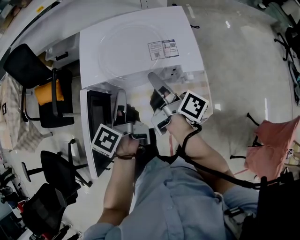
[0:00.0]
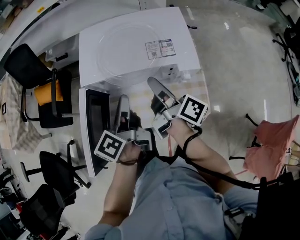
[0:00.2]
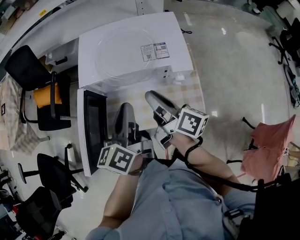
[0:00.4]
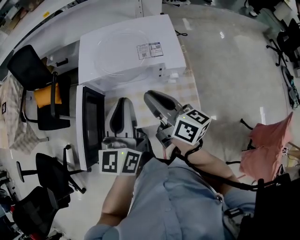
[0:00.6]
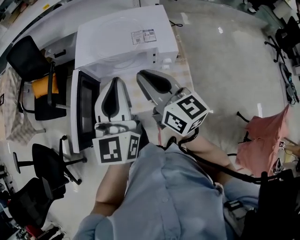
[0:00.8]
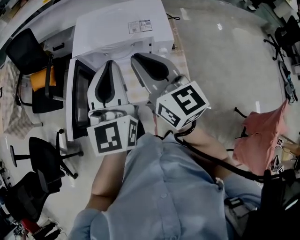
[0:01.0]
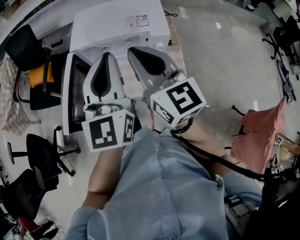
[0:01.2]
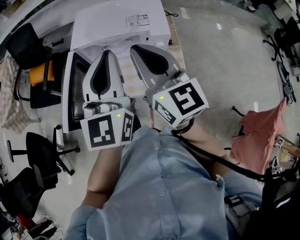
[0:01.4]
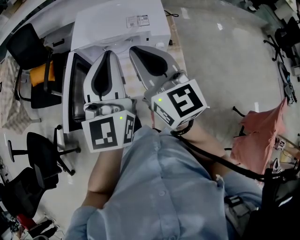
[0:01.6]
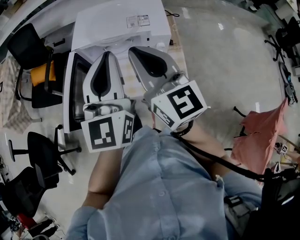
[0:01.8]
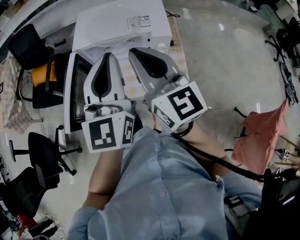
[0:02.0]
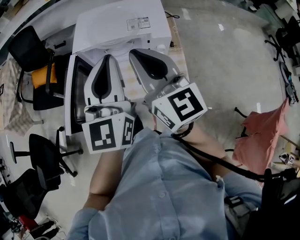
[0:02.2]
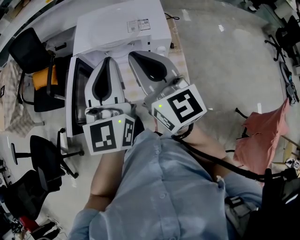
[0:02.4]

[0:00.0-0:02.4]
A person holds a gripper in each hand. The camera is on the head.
0:00.0 to 0:01.2: The two grippers go roughly 25 cm upward and backward. The left gripper twists approximately 70 degrees clockwise, seen from behind. Meanwhile the right gripper twists about 70 degrees counterclockwise, seen from behind, and closes up.
0:01.2 to 0:02.4: The grippers make only small movements.

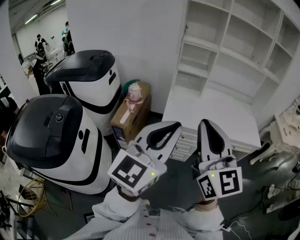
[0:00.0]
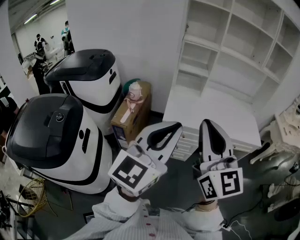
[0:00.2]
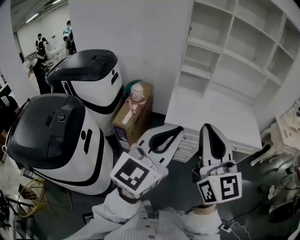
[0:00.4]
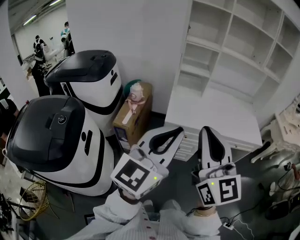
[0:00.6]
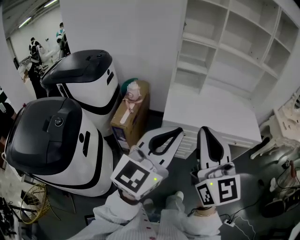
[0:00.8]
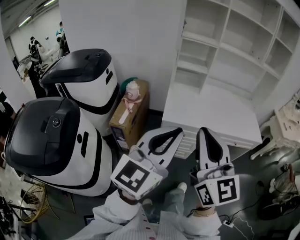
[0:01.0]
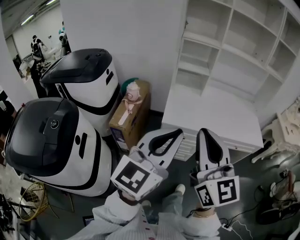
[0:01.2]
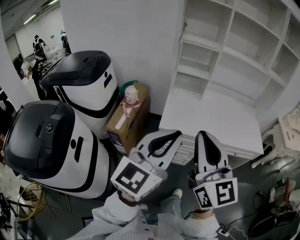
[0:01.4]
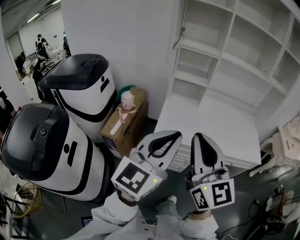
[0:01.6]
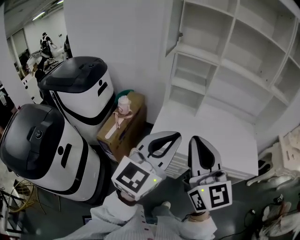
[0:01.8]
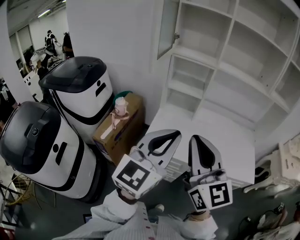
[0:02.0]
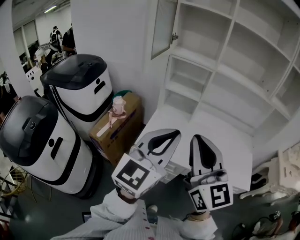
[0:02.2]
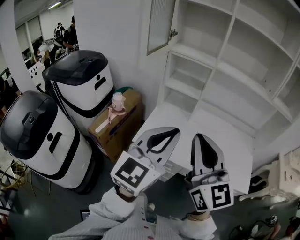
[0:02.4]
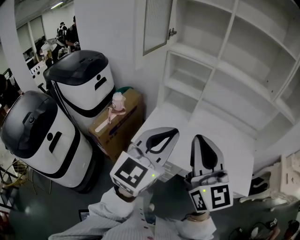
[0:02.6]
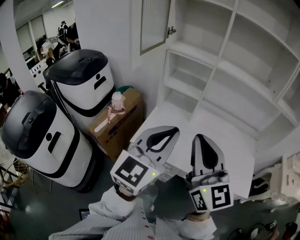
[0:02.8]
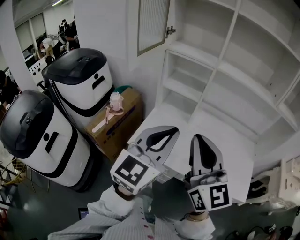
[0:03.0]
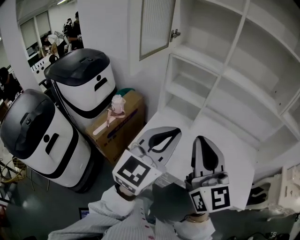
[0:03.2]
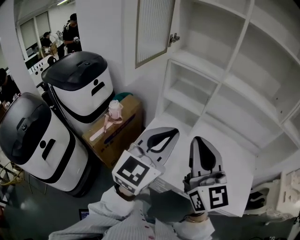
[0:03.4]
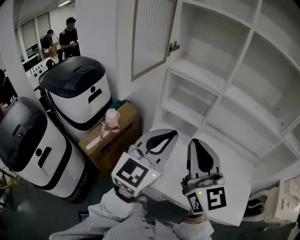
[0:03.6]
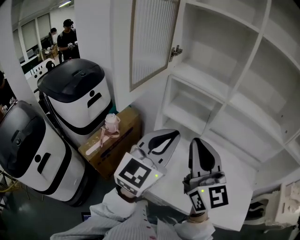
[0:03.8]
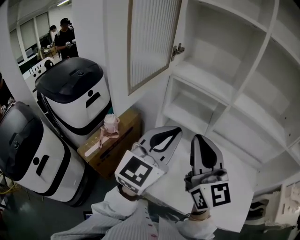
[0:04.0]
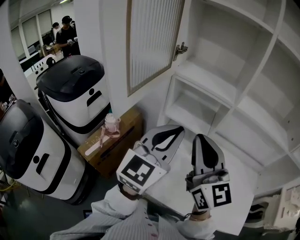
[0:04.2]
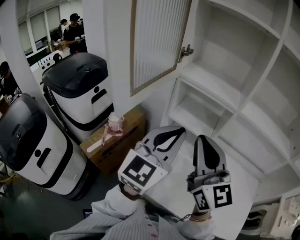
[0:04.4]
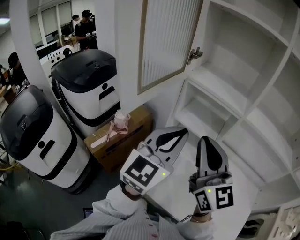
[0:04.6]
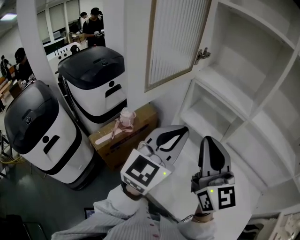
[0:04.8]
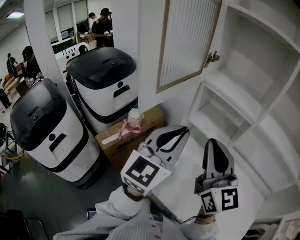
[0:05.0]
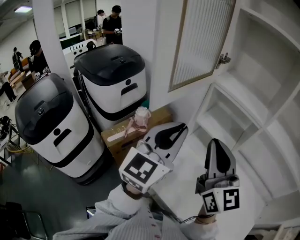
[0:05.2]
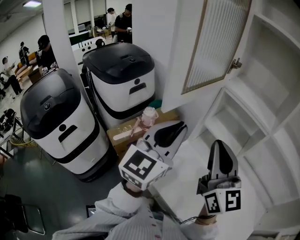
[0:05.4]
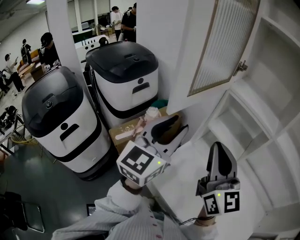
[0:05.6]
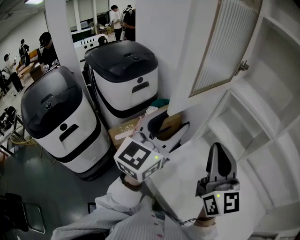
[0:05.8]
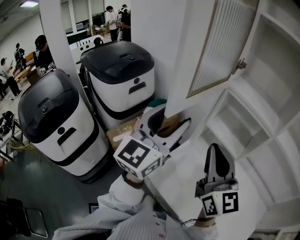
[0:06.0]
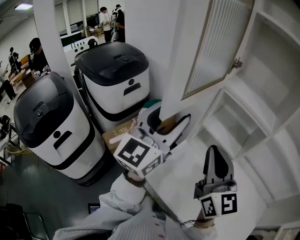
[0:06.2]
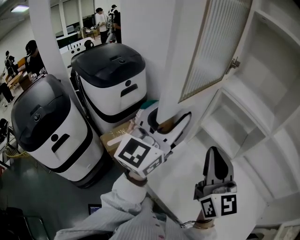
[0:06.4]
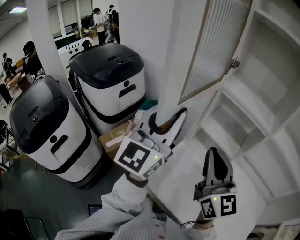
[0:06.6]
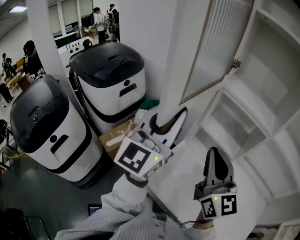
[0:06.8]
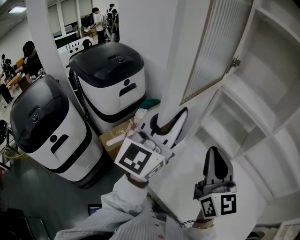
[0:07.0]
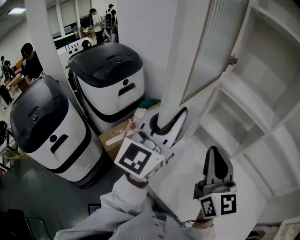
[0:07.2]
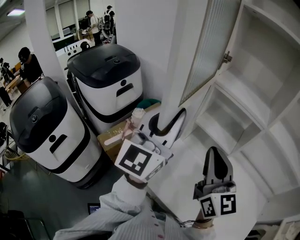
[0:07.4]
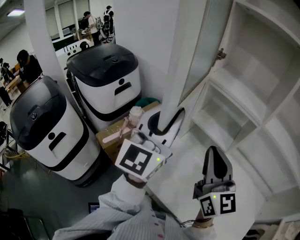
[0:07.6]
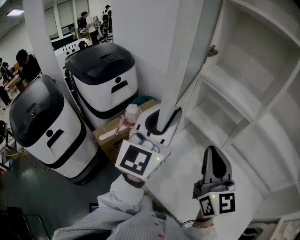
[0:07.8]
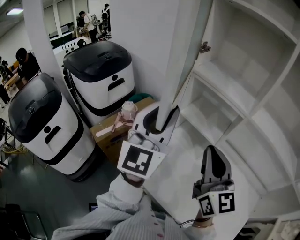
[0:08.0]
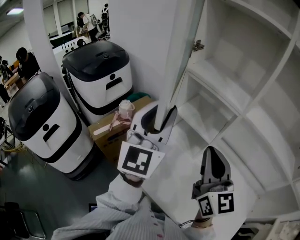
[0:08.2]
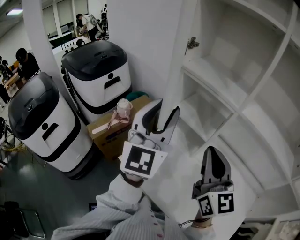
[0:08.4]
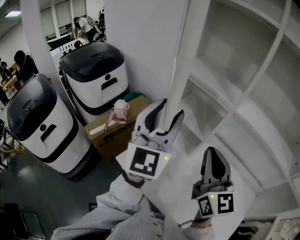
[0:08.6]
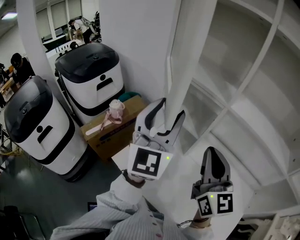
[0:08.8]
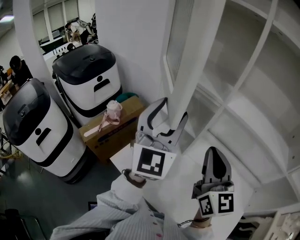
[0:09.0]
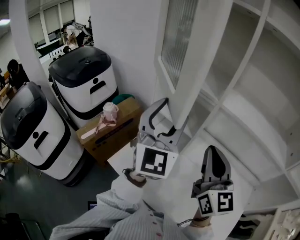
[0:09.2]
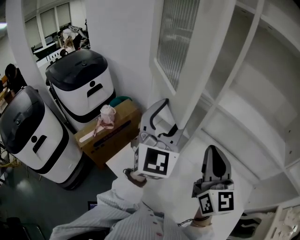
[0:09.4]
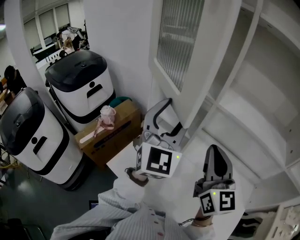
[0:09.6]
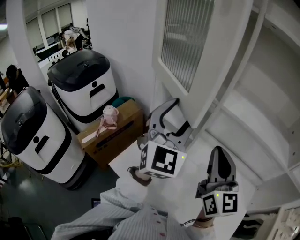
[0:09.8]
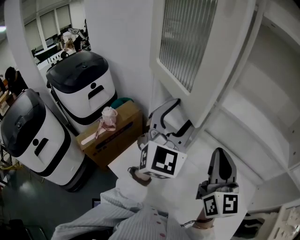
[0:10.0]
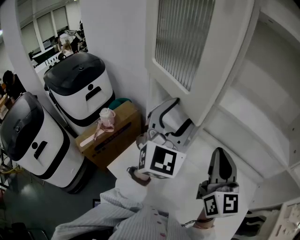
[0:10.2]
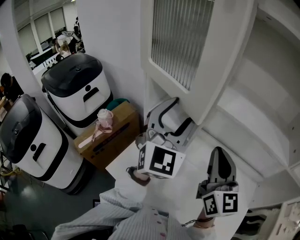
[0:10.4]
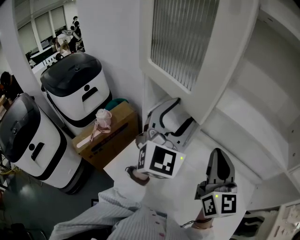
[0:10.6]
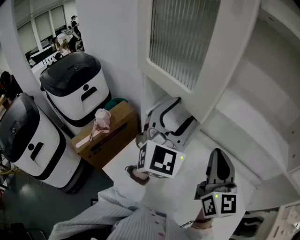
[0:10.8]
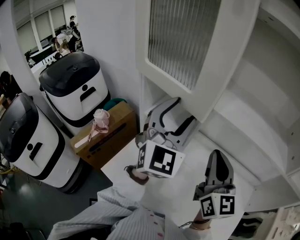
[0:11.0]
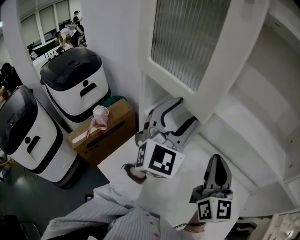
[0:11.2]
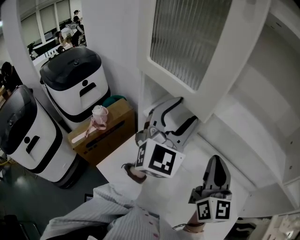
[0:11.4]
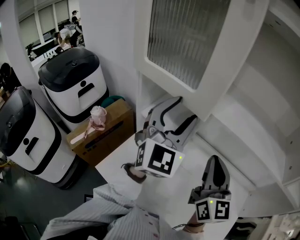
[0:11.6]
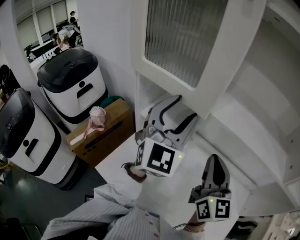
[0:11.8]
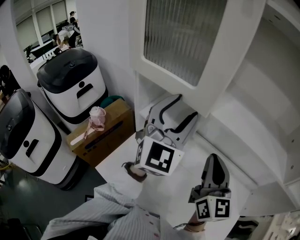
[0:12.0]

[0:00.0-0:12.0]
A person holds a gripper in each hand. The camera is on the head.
0:00.0 to 0:01.6: Both grippers move forward, approximately 10 cm.
0:01.6 to 0:03.0: The right gripper heads to the right and forward, covering roughly 25 cm. Meanwhile the left gripper heads forward and to the right, covering some 25 cm.
0:03.0 to 0:04.4: Both grippers travel together forward, about 25 cm.
0:04.4 to 0:06.0: The left gripper travels to the left by approximately 15 cm, swivels approximately 20 degrees, and opens; the right gripper moves to the left, about 5 cm.
0:06.0 to 0:07.6: The grippers both shift to the right by roughly 5 cm. The left gripper closes up.
0:07.6 to 0:09.0: The two grippers go roughly 15 cm to the right. The left gripper opens its fingers.
0:09.0 to 0:10.4: The left gripper heads to the right, covering roughly 5 cm. The right gripper ends up roughly 5 cm from where it was.
0:10.4 to 0:12.0: The left gripper goes roughly 5 cm forward. The right gripper ends up approximately 5 cm from where it was.

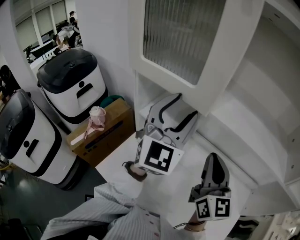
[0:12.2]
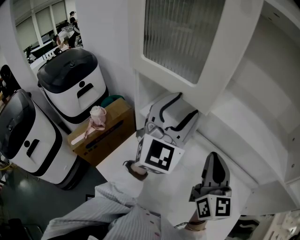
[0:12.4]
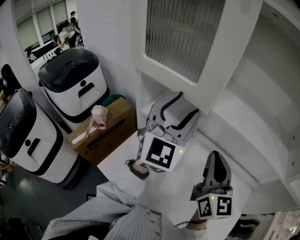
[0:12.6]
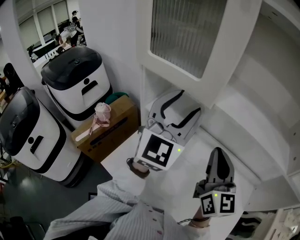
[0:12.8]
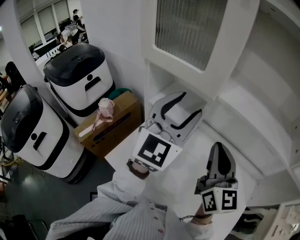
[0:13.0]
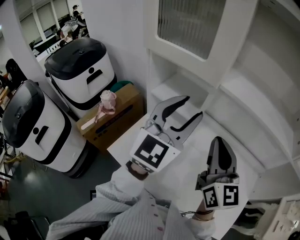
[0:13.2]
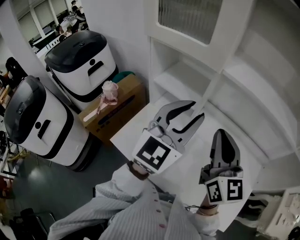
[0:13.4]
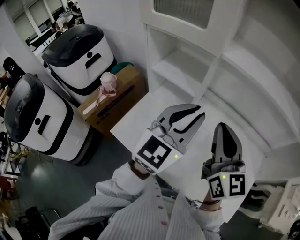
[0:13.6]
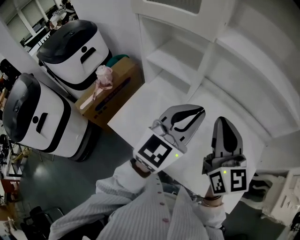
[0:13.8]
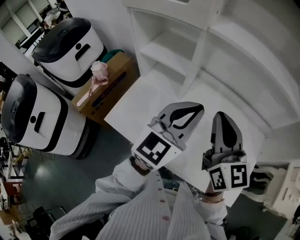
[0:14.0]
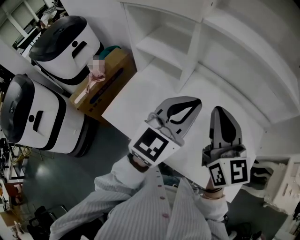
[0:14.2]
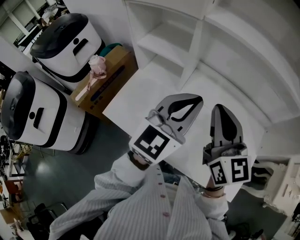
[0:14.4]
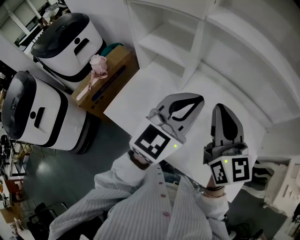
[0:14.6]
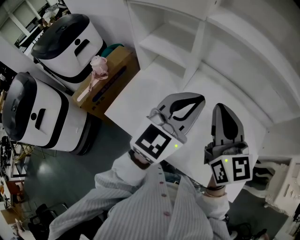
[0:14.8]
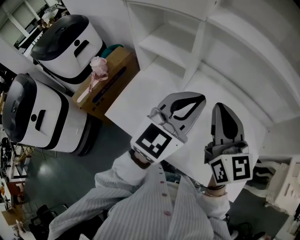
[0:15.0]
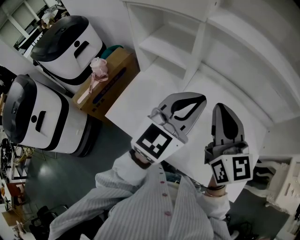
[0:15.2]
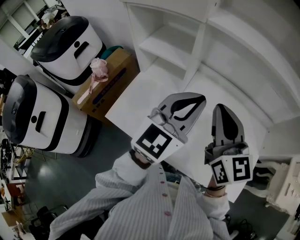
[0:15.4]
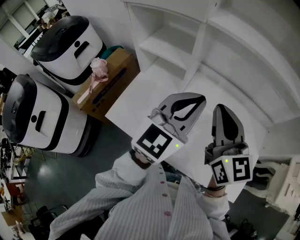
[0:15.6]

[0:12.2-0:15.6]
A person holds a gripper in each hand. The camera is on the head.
0:12.2 to 0:13.8: The right gripper moves backward, approximately 10 cm. Meanwhile the left gripper moves backward, downward and to the right, roughly 20 cm, turns by some 30 degrees, and closes up.
0:13.8 to 0:15.6: There are only small adjustments of the grippers.

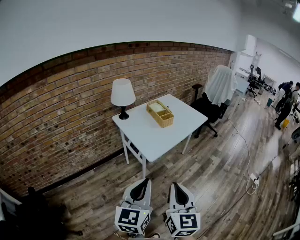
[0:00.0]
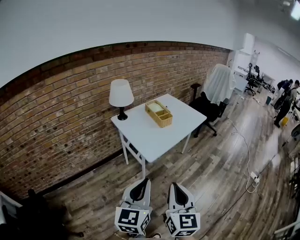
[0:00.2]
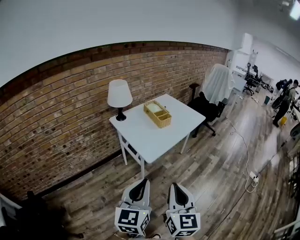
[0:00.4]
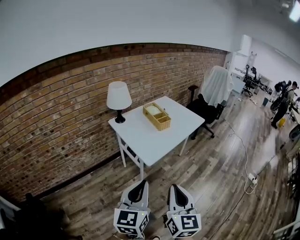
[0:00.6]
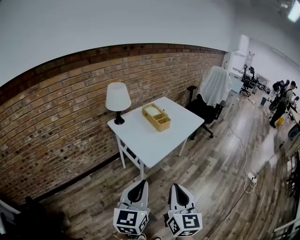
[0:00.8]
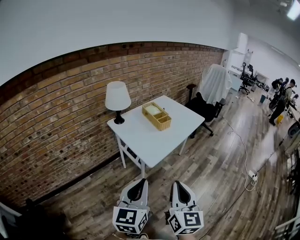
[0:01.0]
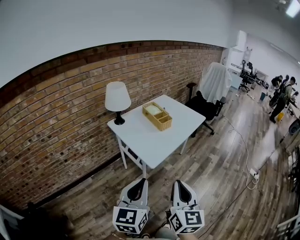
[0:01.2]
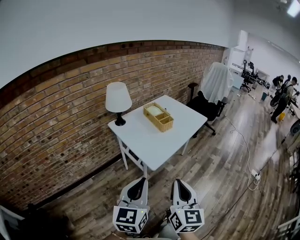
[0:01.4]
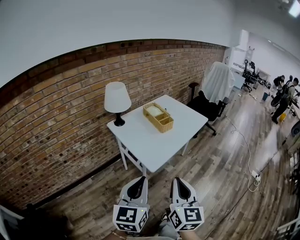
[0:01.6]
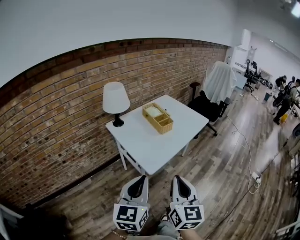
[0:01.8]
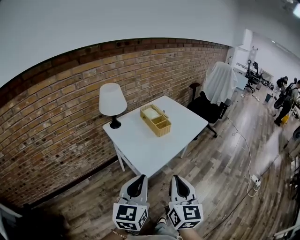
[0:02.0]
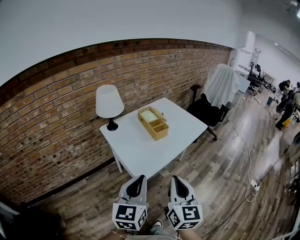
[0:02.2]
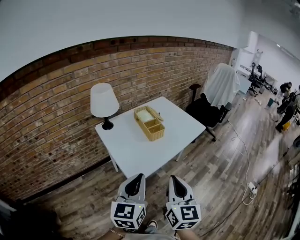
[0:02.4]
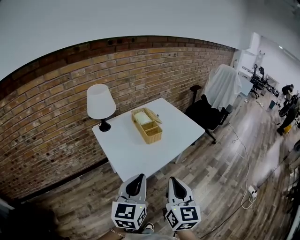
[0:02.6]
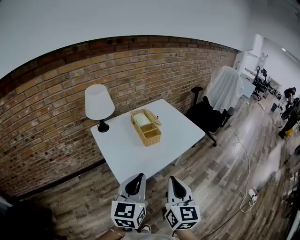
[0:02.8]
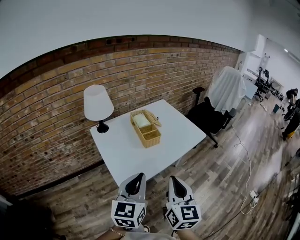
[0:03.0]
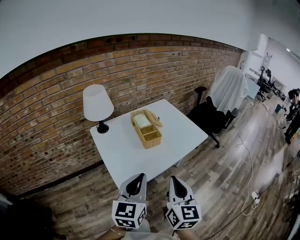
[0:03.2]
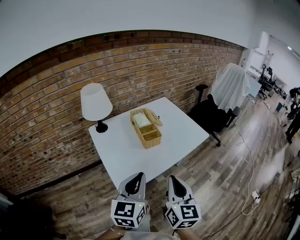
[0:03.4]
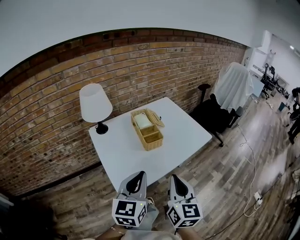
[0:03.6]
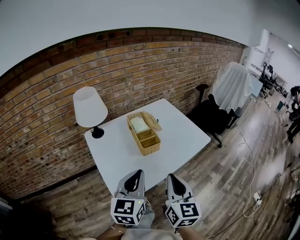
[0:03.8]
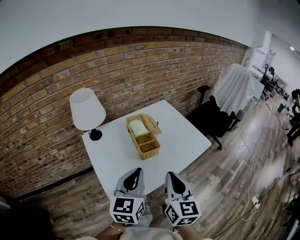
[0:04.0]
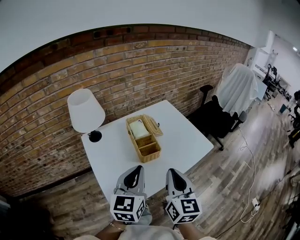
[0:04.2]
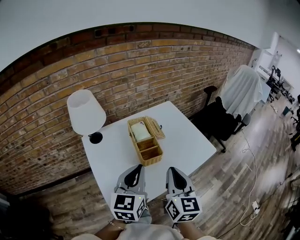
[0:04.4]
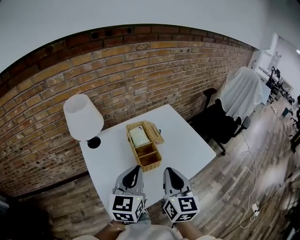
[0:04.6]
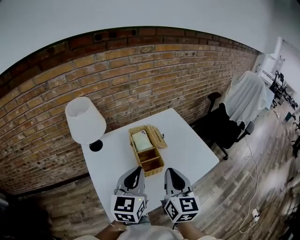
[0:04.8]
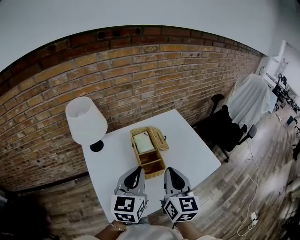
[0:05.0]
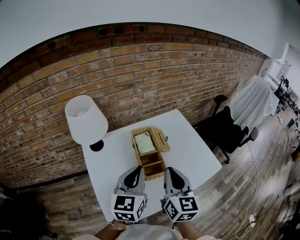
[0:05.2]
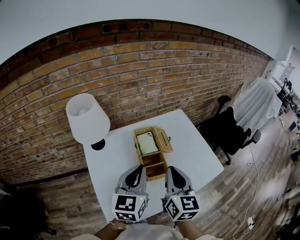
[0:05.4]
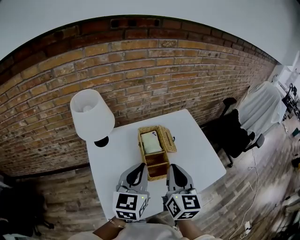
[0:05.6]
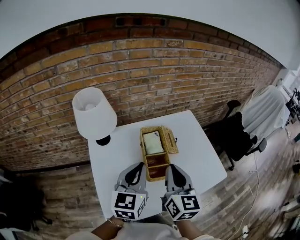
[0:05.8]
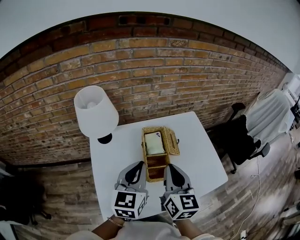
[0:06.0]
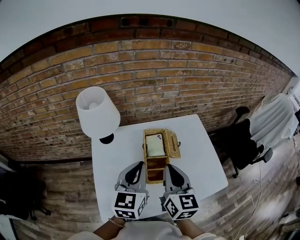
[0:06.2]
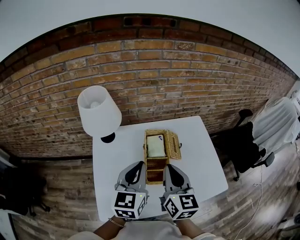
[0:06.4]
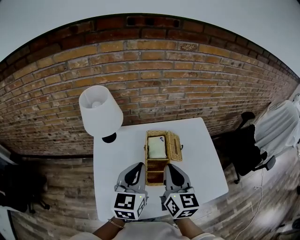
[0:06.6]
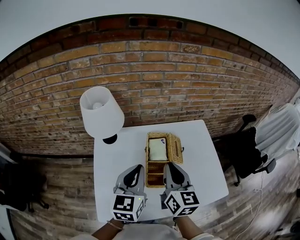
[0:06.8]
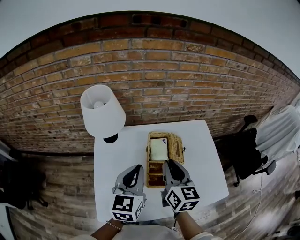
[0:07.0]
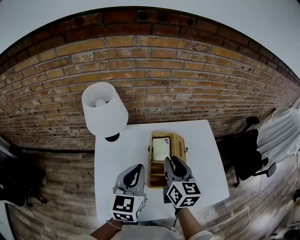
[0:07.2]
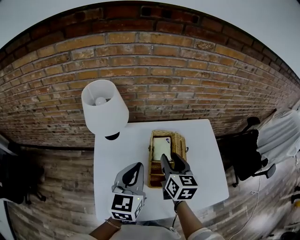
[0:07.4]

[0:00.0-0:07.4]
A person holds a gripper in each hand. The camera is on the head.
0:00.0 to 0:01.4: The grippers both shift forward by approximately 10 cm.
0:01.4 to 0:03.0: The two grippers go some 25 cm forward and to the right.
0:03.0 to 0:04.4: The grippers both shift forward by some 25 cm.
0:04.4 to 0:06.0: Both grippers travel together forward, about 15 cm.
0:06.0 to 0:07.4: The right gripper is displaced forward and downward by roughly 15 cm, and opens up.
